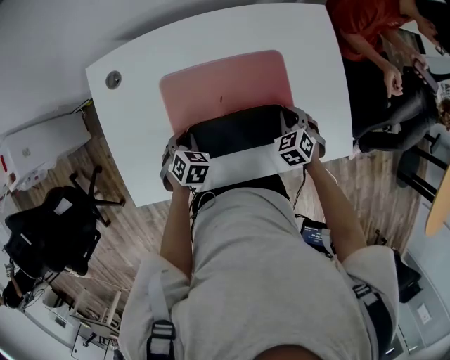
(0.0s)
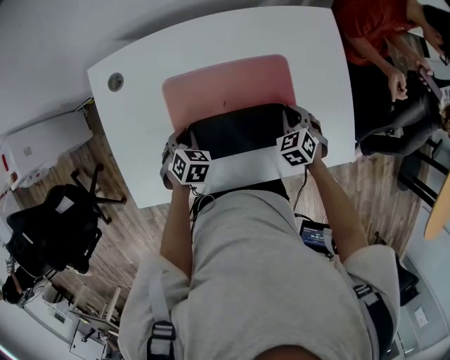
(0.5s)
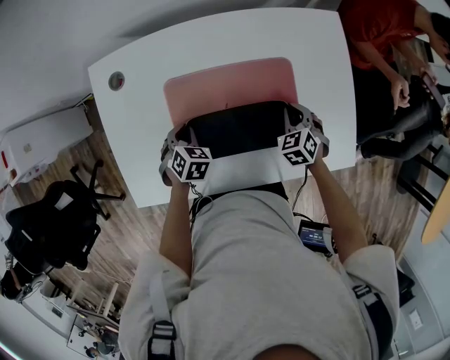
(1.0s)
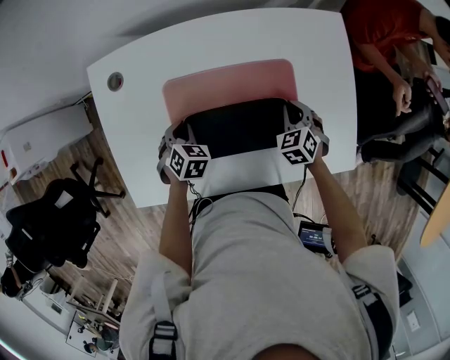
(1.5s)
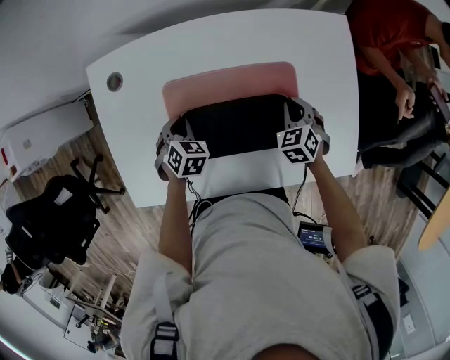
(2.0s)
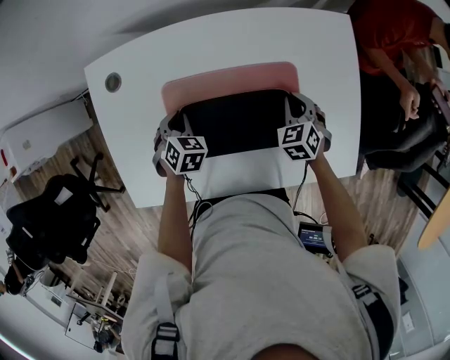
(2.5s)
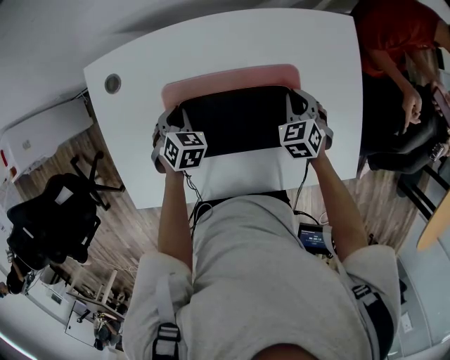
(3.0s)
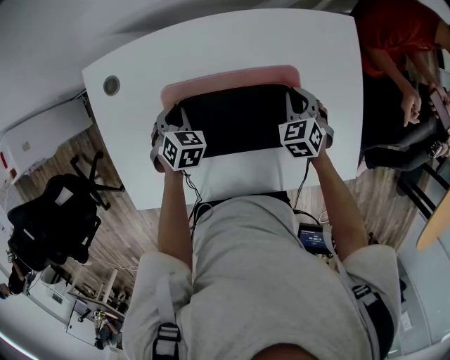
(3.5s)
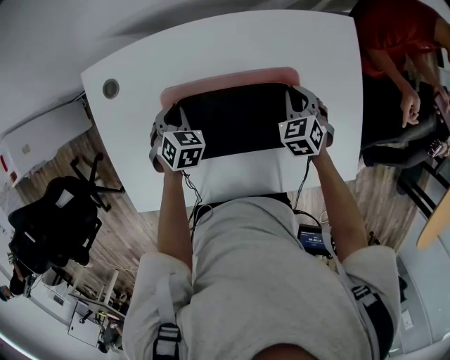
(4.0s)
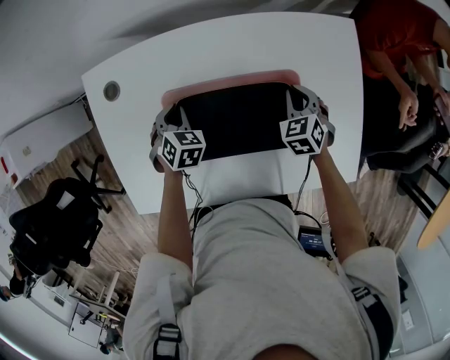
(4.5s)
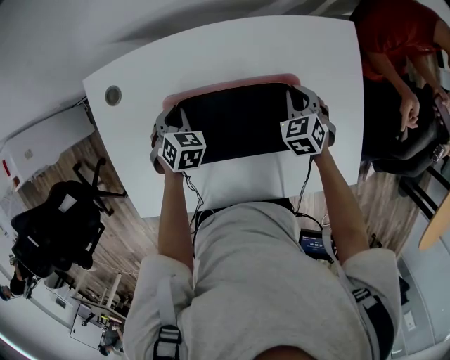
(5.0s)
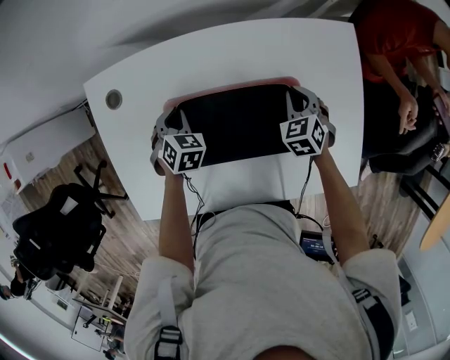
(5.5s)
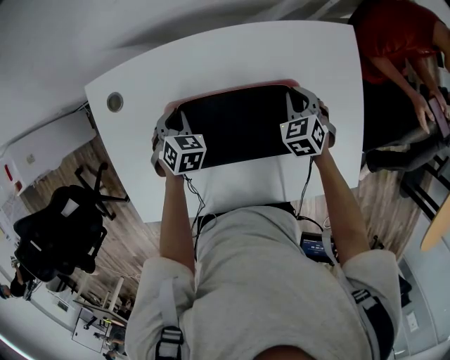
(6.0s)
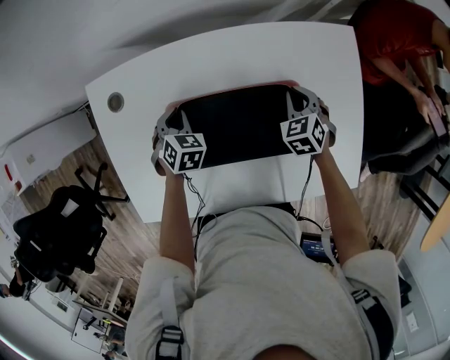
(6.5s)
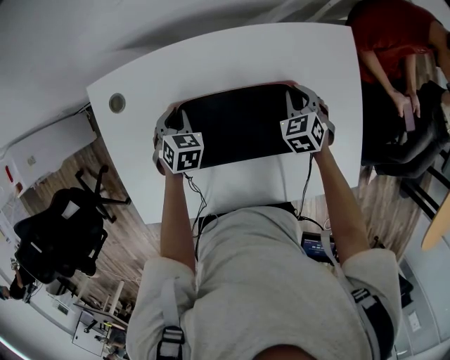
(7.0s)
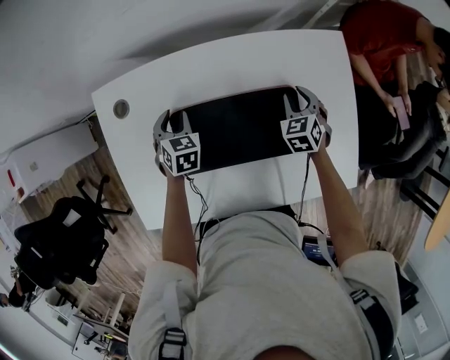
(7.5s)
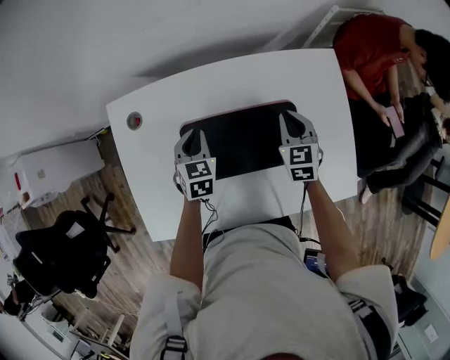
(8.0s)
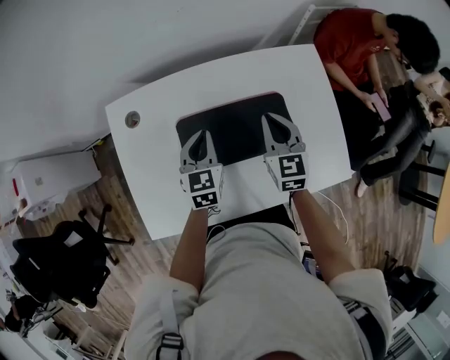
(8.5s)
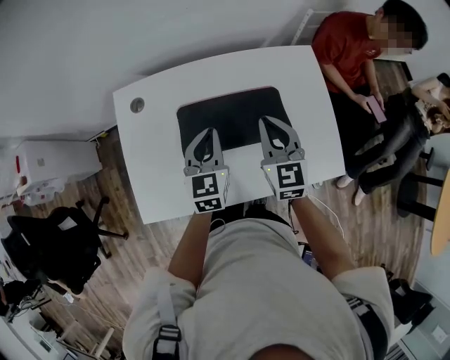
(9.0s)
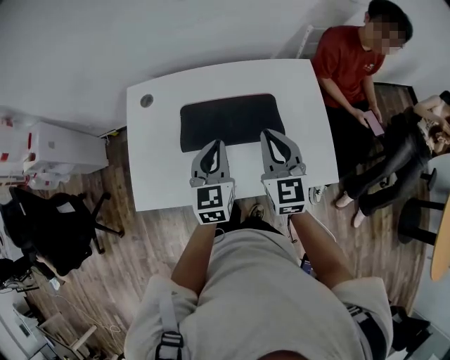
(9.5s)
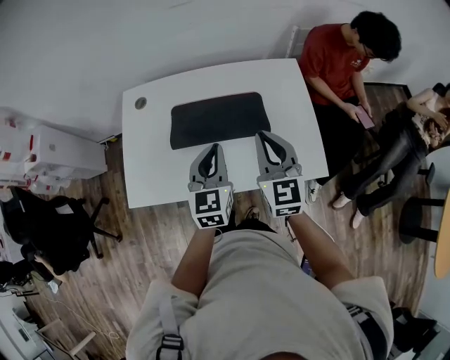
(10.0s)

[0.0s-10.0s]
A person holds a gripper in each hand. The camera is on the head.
0.0s to 2.0s: Both grippers move forward, roughly 10 cm.
2.0s to 4.0s: The two grippers go some 5 cm forward.
4.0s to 6.0s: The grippers make only small movements.
6.0s to 8.0s: The two grippers go approximately 10 cm upward. The right gripper rotates about 30 degrees, and opens, then closes again. Meanwhile the left gripper turns by some 30 degrees.
8.0s to 10.0s: The left gripper is displaced backward, upward and to the right by approximately 35 cm, and swivels some 30 degrees. The right gripper heads backward and upward, covering roughly 30 cm, and rotates roughly 30 degrees.

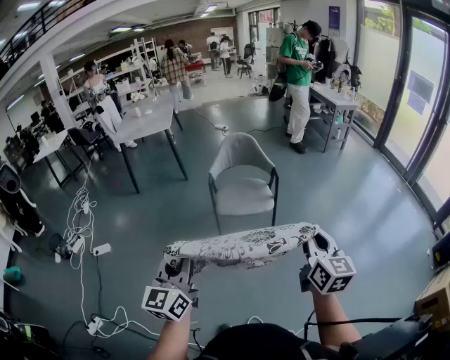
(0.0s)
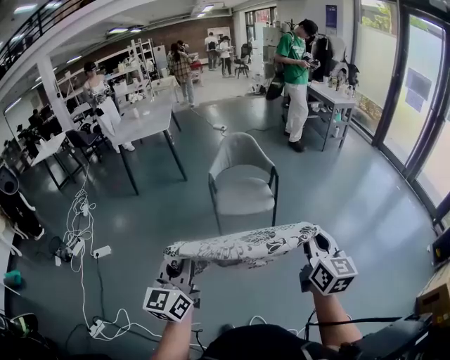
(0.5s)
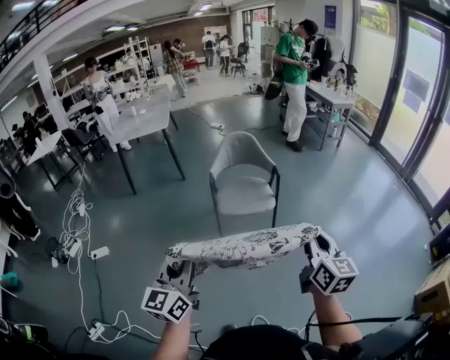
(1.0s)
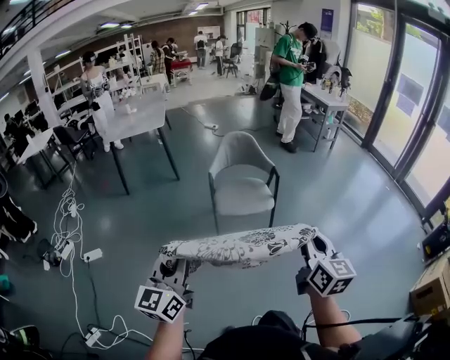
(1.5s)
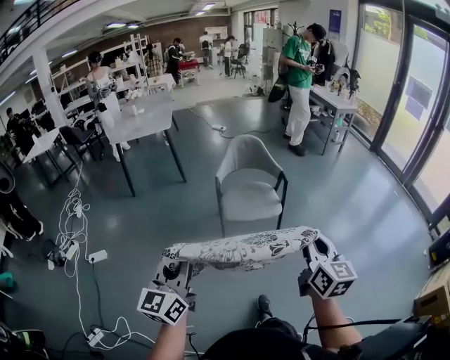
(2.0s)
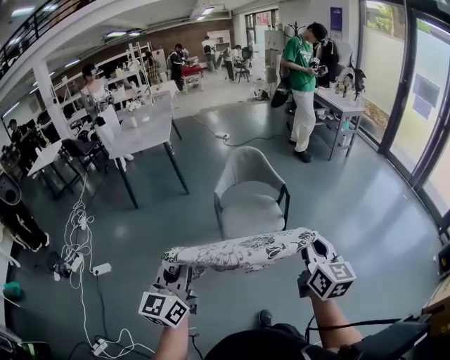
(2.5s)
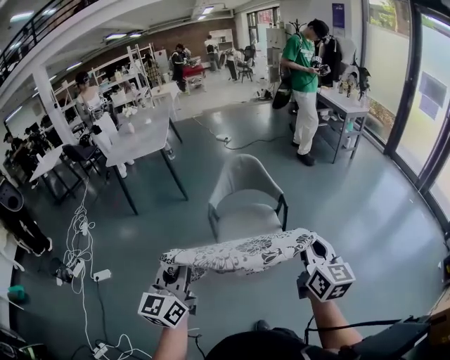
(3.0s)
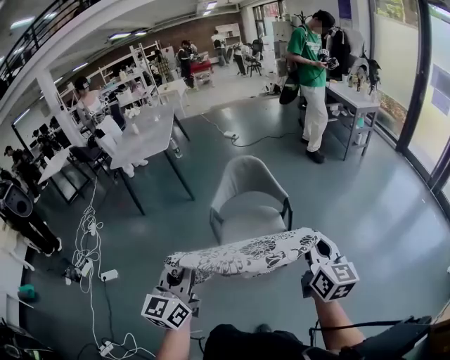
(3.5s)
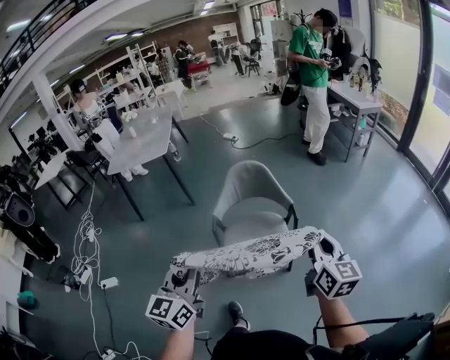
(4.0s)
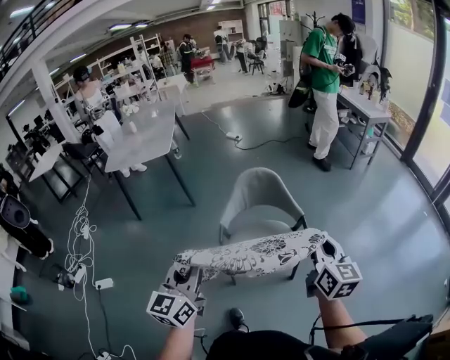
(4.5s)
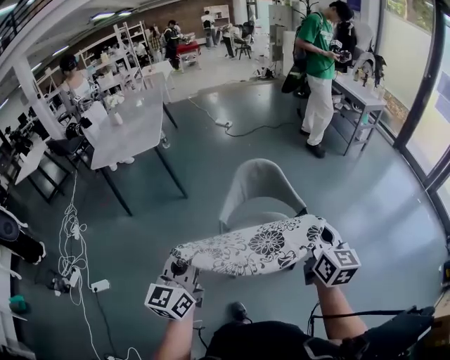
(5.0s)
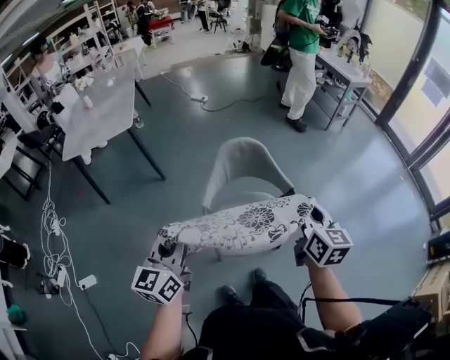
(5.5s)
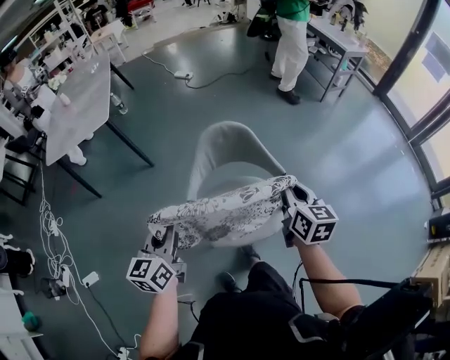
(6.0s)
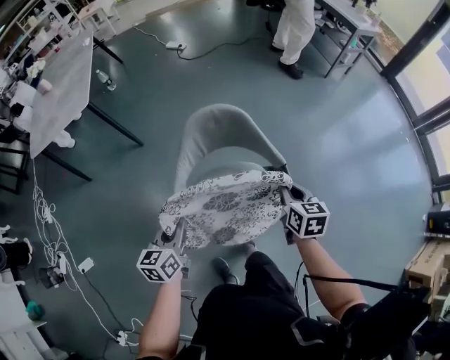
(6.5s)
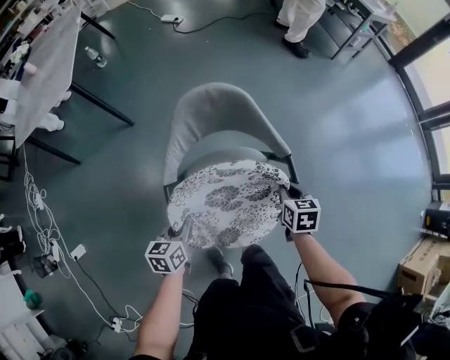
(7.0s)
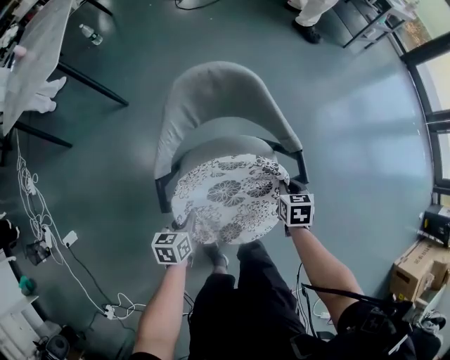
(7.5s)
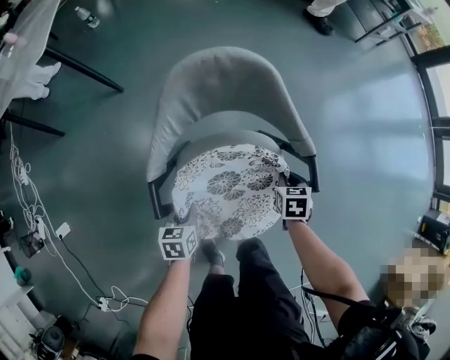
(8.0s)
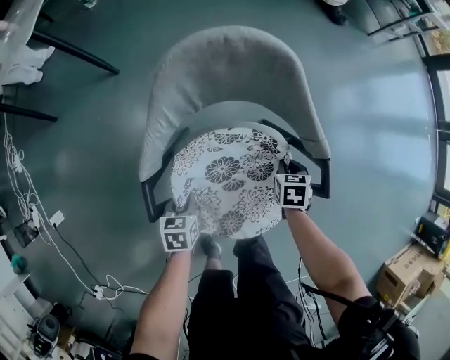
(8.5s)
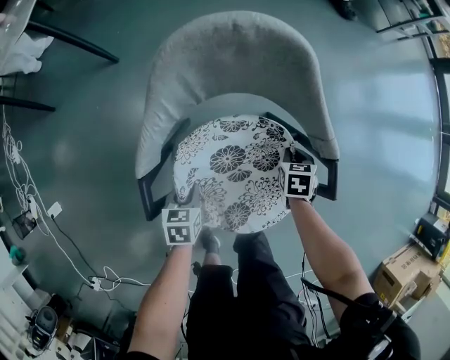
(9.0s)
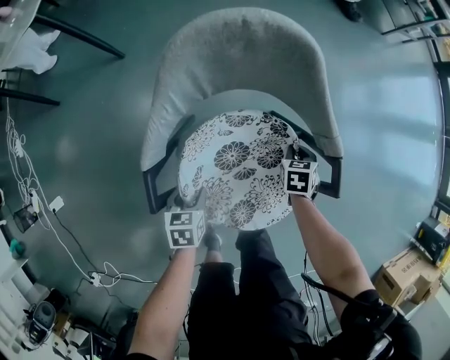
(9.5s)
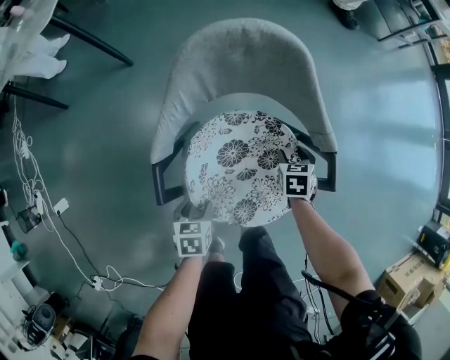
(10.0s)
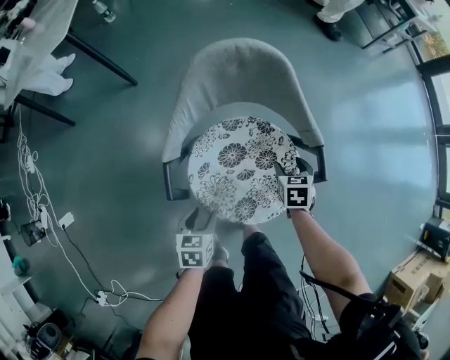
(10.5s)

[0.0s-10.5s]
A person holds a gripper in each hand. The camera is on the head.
0.0s to 2.0s: The grippers both shift to the left by approximately 10 cm.
2.0s to 4.0s: Both grippers travel together forward, approximately 30 cm.
4.0s to 6.5s: The two grippers go approximately 40 cm forward and downward. The left gripper swivels roughly 40 degrees; the right gripper tips its fingers downward by some 30 degrees.
6.5s to 8.5s: Both grippers move downward, approximately 35 cm. The left gripper points its fingers roughly 30 degrees further downward. The right gripper changes its angle by approximately 30 degrees.
8.5s to 10.5s: The right gripper moves upward, some 5 cm, and opens up; the left gripper moves upward and backward, some 10 cm, and opens up.

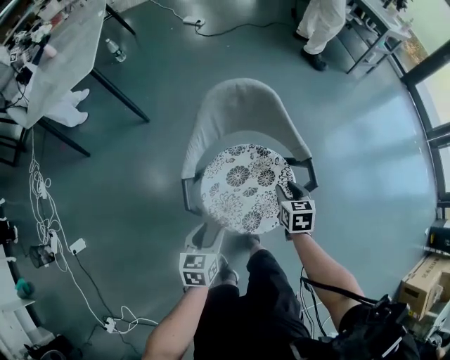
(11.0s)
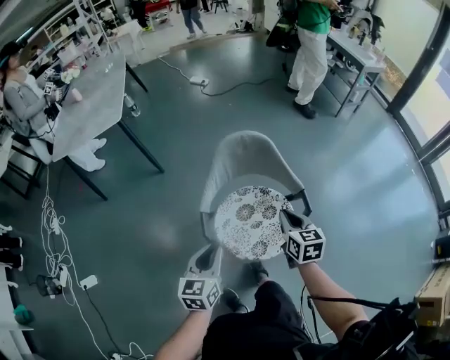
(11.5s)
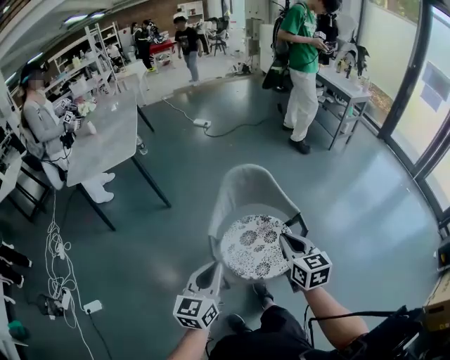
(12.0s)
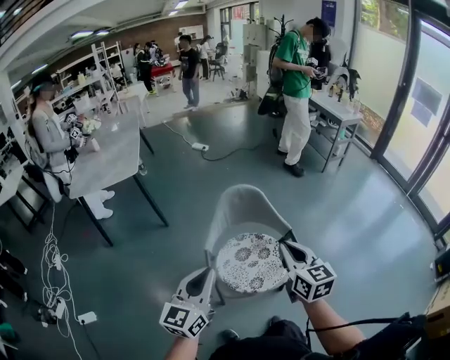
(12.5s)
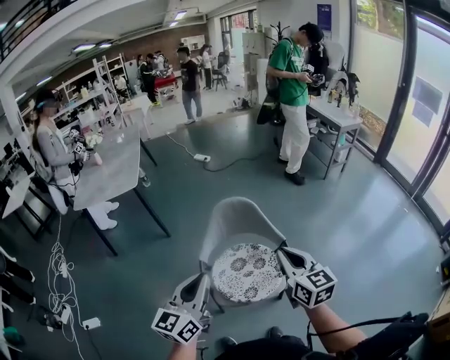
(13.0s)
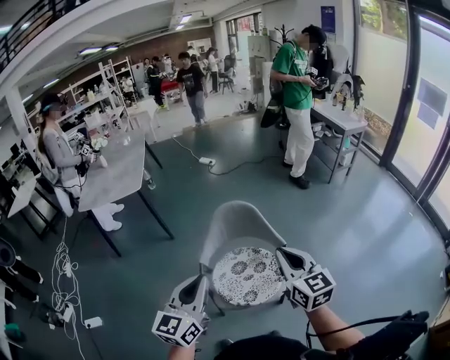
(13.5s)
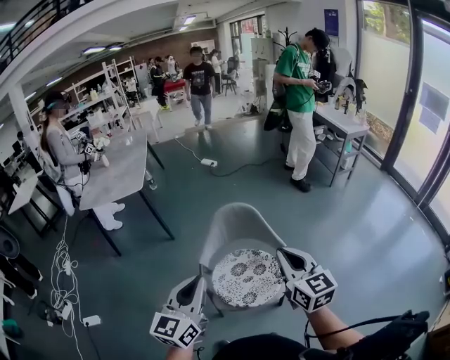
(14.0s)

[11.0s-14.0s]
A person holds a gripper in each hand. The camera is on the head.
11.0s to 12.5s: The grippers both shift upward by roughly 35 cm. The left gripper tips its fingers upward by roughly 40 degrees, and closes up; the right gripper angles its fingers upward, by approximately 40 degrees, and closes up.
12.5s to 14.0s: The grippers both shift upward and to the right by roughly 10 cm.

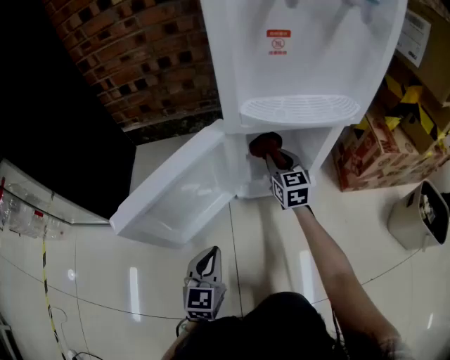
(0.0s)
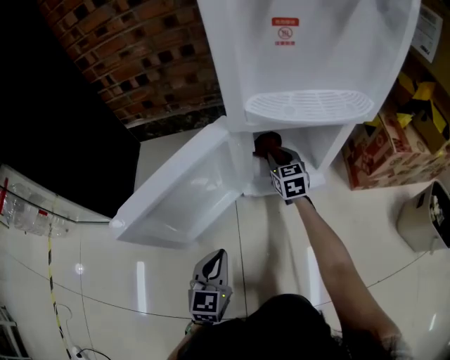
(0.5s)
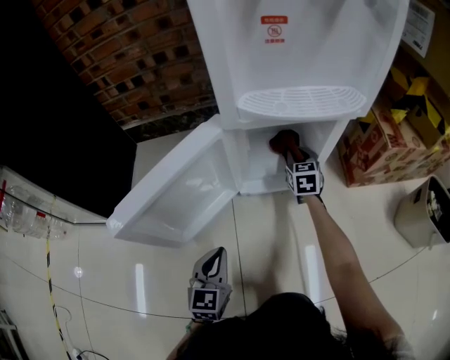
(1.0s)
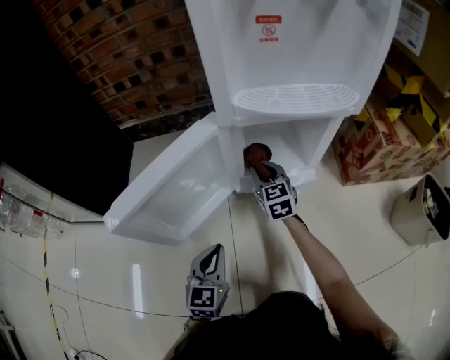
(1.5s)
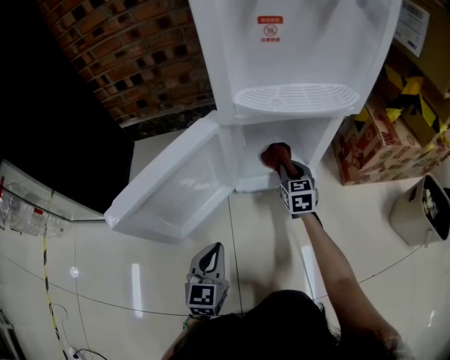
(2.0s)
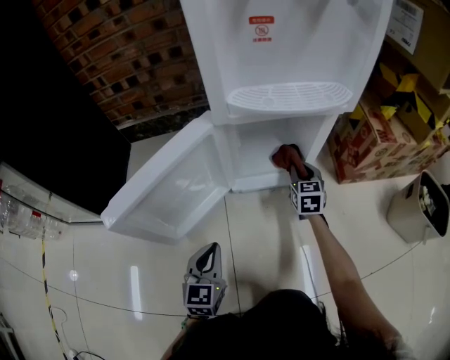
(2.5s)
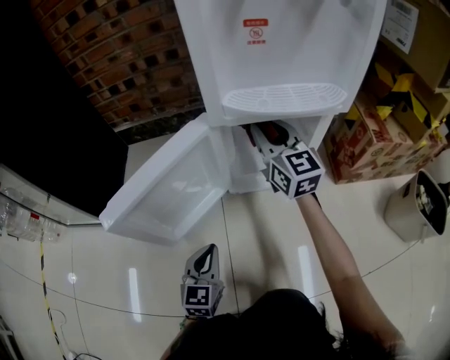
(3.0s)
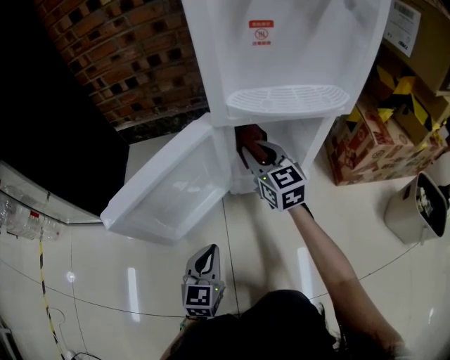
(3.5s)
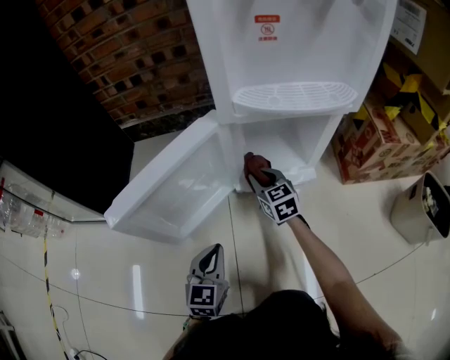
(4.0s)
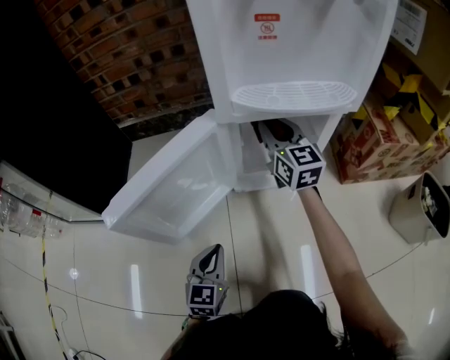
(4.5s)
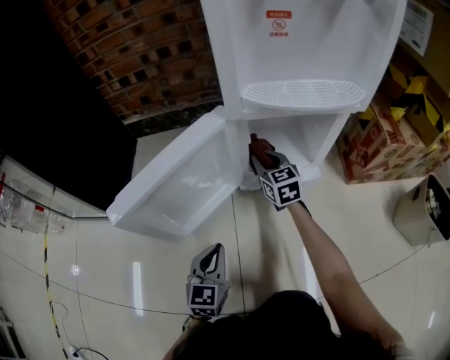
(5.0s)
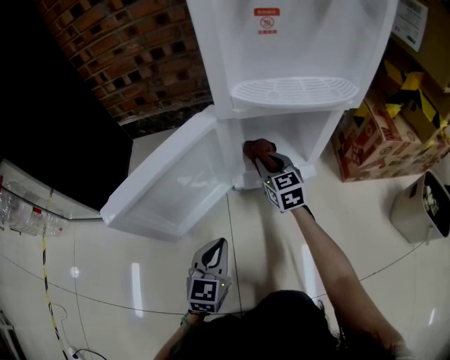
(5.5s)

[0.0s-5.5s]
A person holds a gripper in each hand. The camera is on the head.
0.0s to 2.0s: The right gripper moves left and right over about 10 cm, changing direction 2 times.
2.0s to 3.5s: The right gripper is displaced upward and to the left by roughly 20 cm, and changes its angle by roughly 30 degrees.
3.5s to 5.5s: The right gripper moves up and down over approximately 20 cm, changing direction 2 times.
